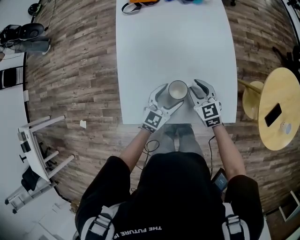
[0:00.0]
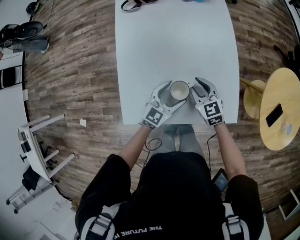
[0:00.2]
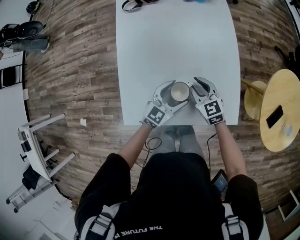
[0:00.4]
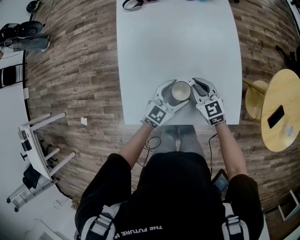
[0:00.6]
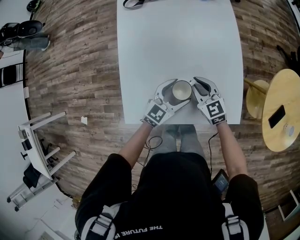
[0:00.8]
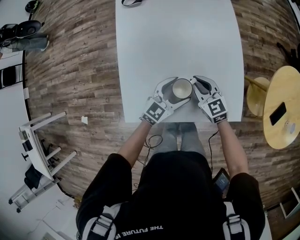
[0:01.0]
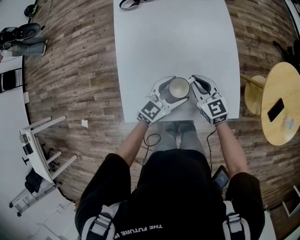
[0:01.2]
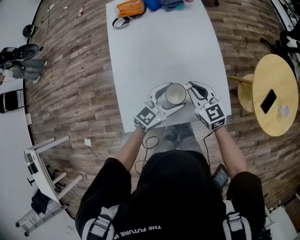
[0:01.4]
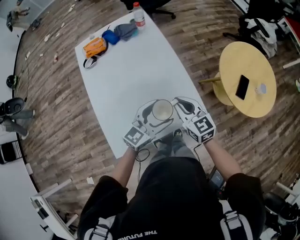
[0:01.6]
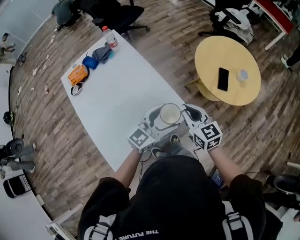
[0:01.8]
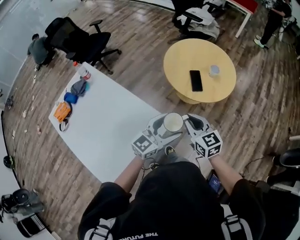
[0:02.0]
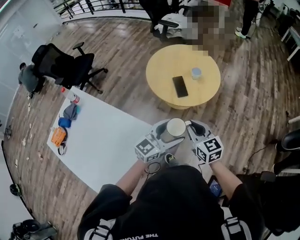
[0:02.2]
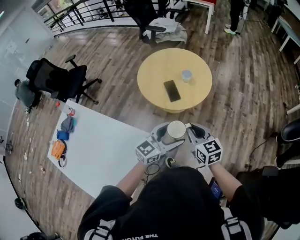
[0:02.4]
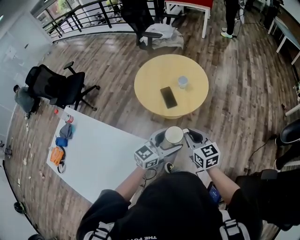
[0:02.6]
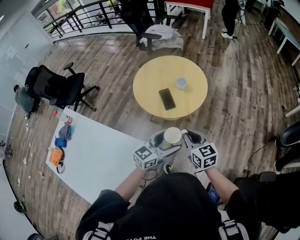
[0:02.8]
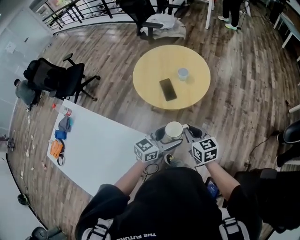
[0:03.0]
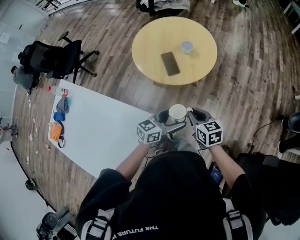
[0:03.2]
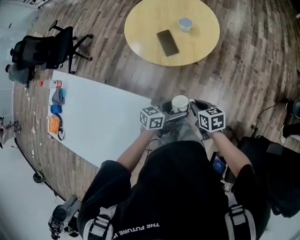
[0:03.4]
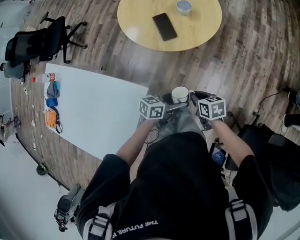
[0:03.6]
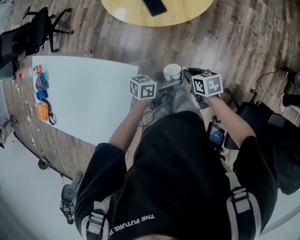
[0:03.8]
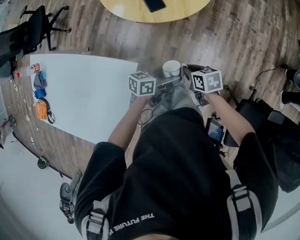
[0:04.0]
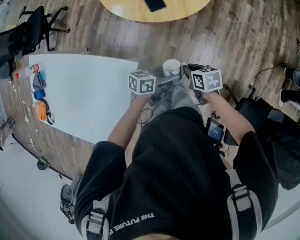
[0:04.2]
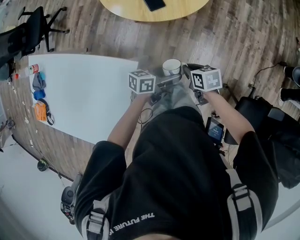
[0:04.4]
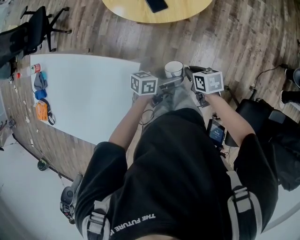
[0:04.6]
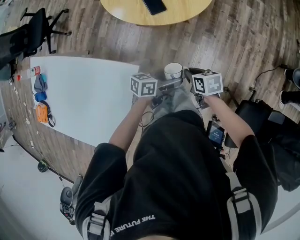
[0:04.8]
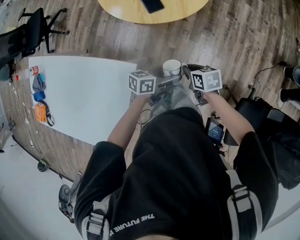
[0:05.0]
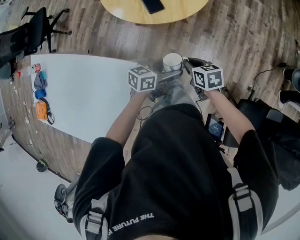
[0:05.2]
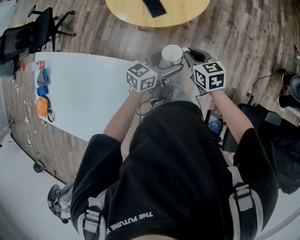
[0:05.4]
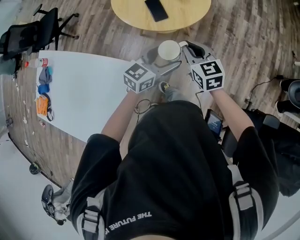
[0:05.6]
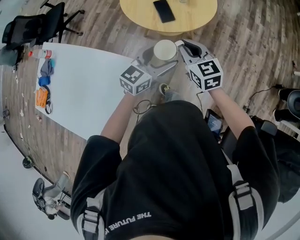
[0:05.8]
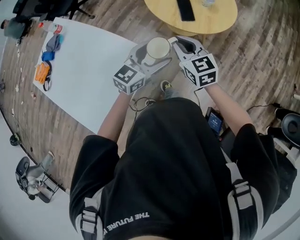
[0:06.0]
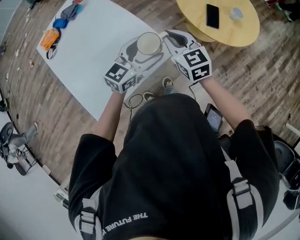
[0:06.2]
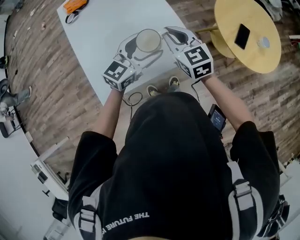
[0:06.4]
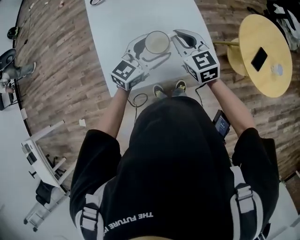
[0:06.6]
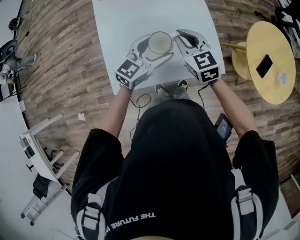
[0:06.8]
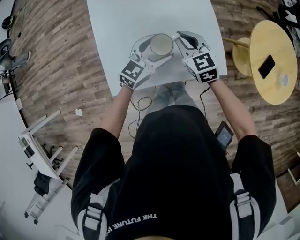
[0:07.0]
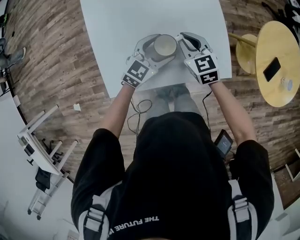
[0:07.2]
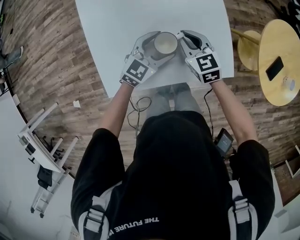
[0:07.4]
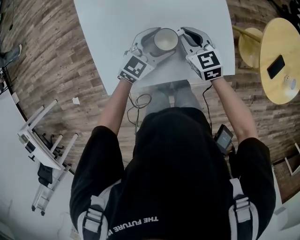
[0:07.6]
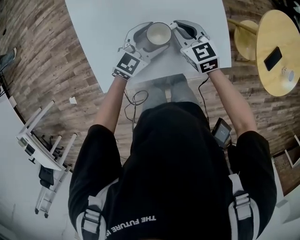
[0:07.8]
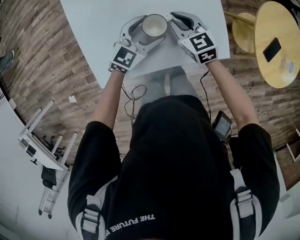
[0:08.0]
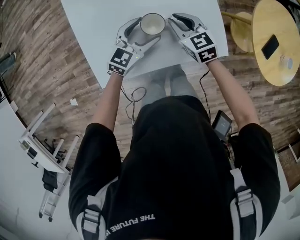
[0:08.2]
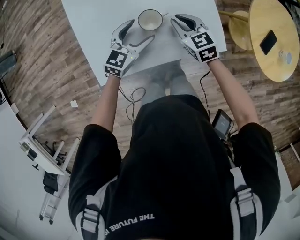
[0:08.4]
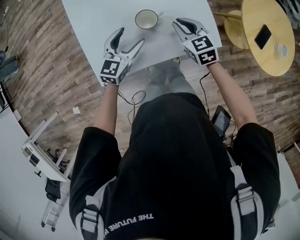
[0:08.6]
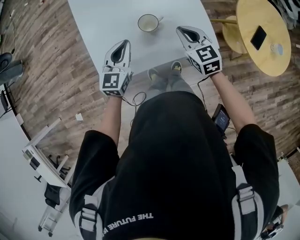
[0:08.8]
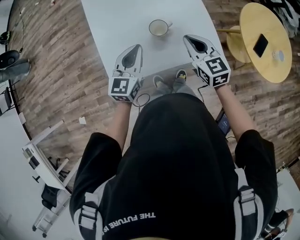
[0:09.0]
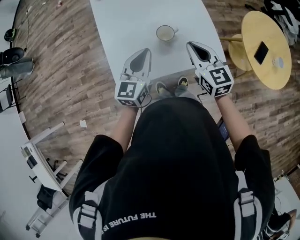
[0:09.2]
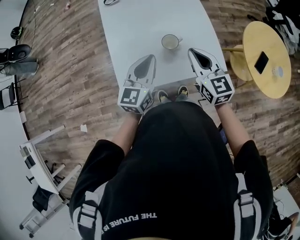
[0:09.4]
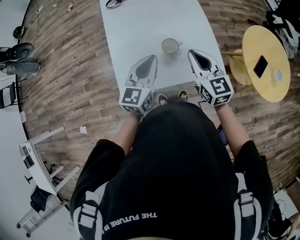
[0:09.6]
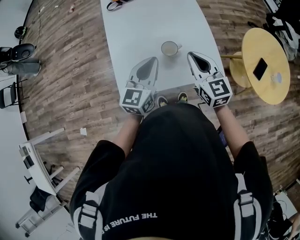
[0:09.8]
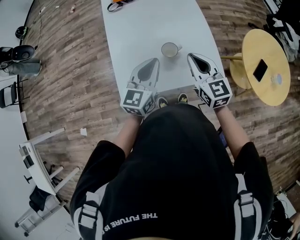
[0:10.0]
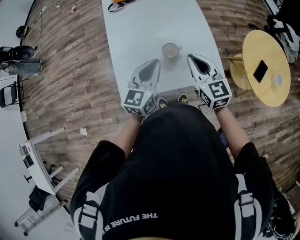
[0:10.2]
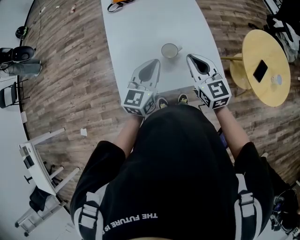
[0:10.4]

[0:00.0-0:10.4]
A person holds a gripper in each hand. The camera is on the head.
0:00.0 to 0:01.4: Both grippers move upward, about 10 cm. The right gripper closes up. The left gripper rotates some 20 degrees.
0:01.4 to 0:03.0: The two grippers travel together, approximately 50 cm. The left gripper rotates approximately 60 degrees, while the right gripper rotates roughly 70 degrees.
0:03.0 to 0:04.4: Both grippers travel together downward, approximately 20 cm. The left gripper rotates around the line of its fingers by some 40 degrees, counterclockwise from behind. Meanwhile the right gripper swivels some 40 degrees.
0:04.4 to 0:06.0: Both grippers travel together upward, approximately 20 cm. The left gripper changes its angle by approximately 60 degrees, while the right gripper rotates around the line of its fingers by roughly 40 degrees, counterclockwise from behind.
0:06.0 to 0:07.4: The right gripper ends up some 35 cm from where it was, and rotates approximately 50 degrees, while the left gripper moves roughly 35 cm, and swivels approximately 40 degrees.
0:07.4 to 0:09.0: The right gripper shifts some 15 cm backward and upward. The left gripper shifts some 20 cm to the left, upward and backward, turns by roughly 30 degrees, and closes.
0:09.0 to 0:10.4: The two grippers go about 5 cm upward.

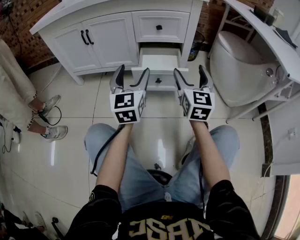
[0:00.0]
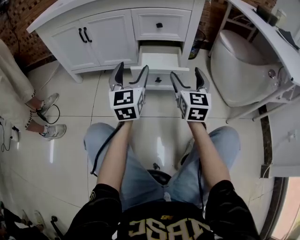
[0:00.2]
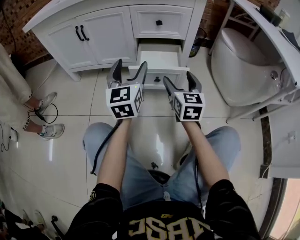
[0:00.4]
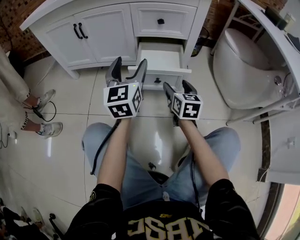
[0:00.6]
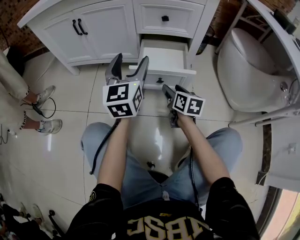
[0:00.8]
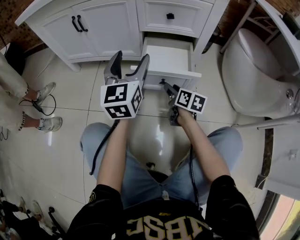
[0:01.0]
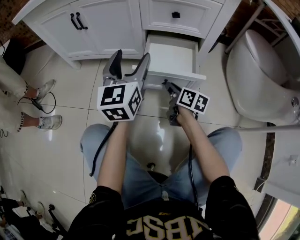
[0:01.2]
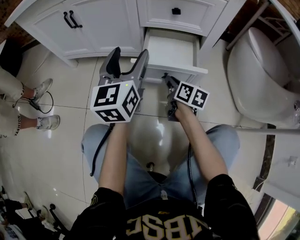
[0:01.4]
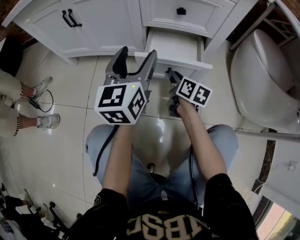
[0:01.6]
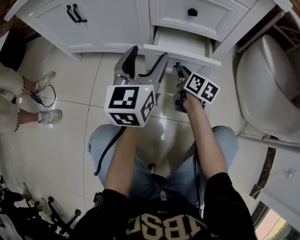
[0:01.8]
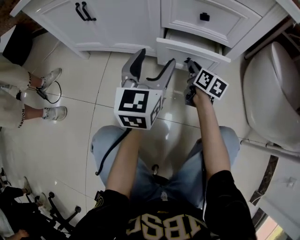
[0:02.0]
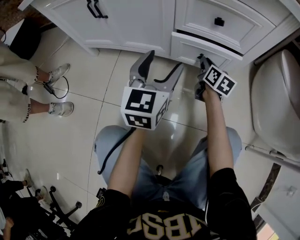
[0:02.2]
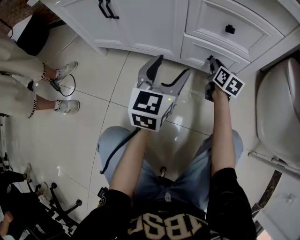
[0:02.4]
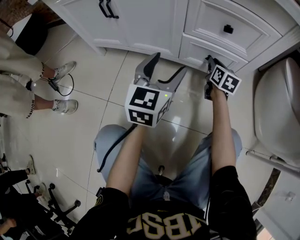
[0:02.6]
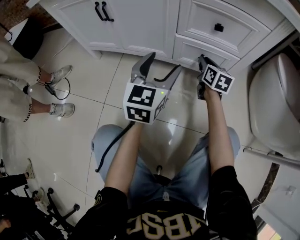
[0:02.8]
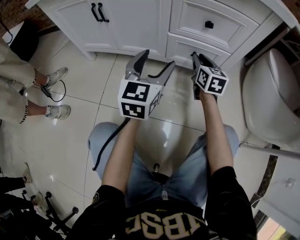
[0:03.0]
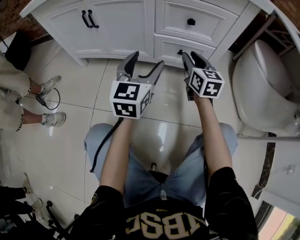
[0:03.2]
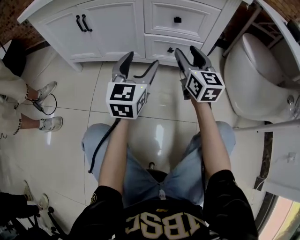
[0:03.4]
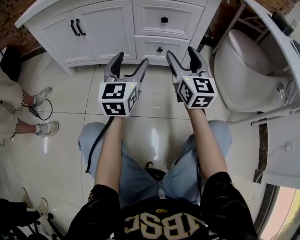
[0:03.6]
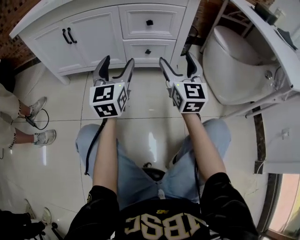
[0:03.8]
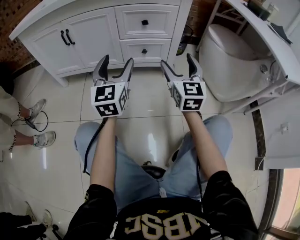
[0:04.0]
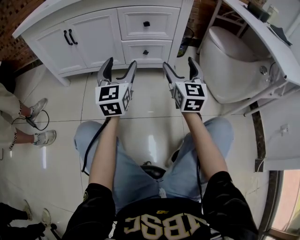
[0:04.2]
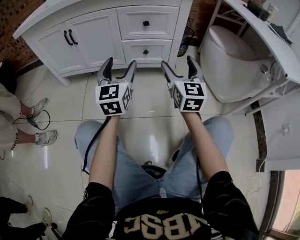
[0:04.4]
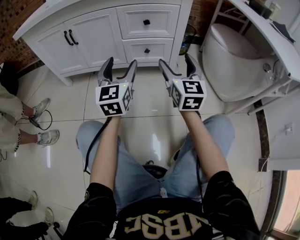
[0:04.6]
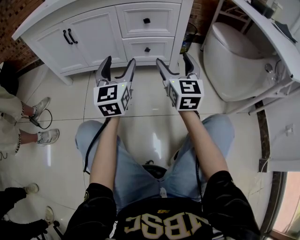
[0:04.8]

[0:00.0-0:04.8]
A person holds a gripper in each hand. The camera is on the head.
0:00.0 to 0:01.6: The right gripper moves downward and forward, about 30 cm, rotates approximately 50 degrees, and closes up. Meanwhile the left gripper shifts roughly 15 cm forward.
0:01.6 to 0:03.2: The right gripper is displaced upward by about 15 cm, goes forward and returns, roughly 15 cm each way, and swivels approximately 40 degrees.
0:03.2 to 0:04.8: The left gripper heads backward, covering approximately 10 cm; the right gripper moves backward and upward, some 20 cm, turns by roughly 20 degrees, and opens.

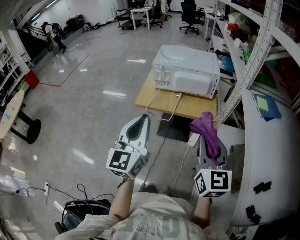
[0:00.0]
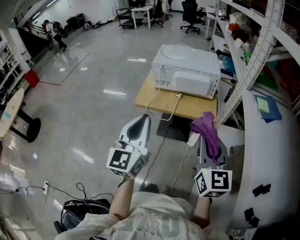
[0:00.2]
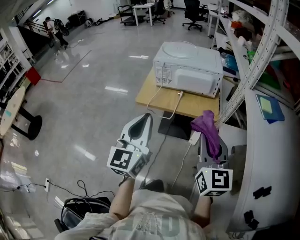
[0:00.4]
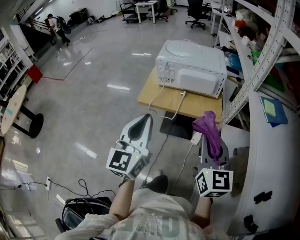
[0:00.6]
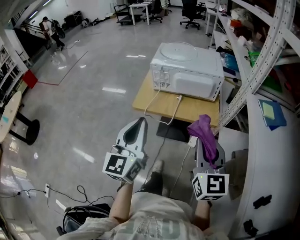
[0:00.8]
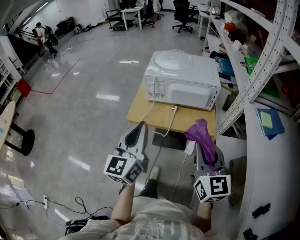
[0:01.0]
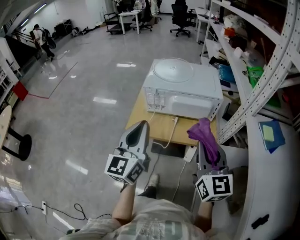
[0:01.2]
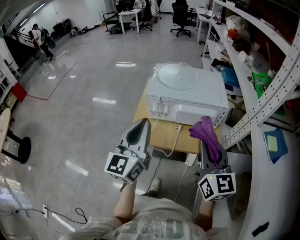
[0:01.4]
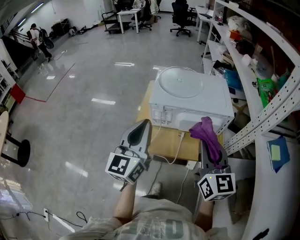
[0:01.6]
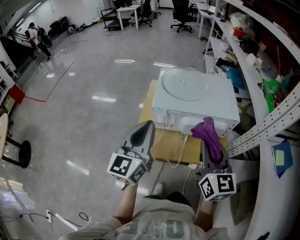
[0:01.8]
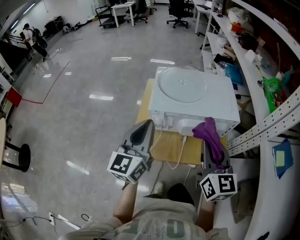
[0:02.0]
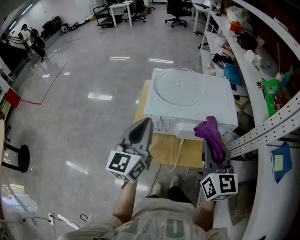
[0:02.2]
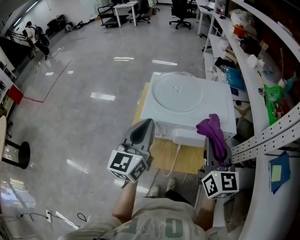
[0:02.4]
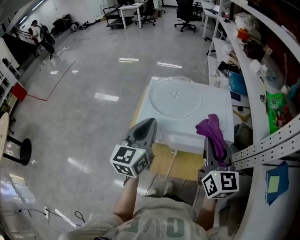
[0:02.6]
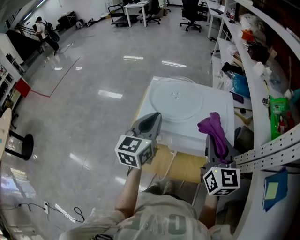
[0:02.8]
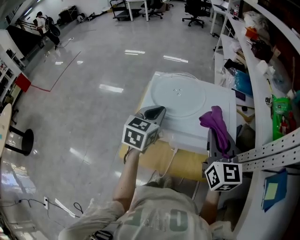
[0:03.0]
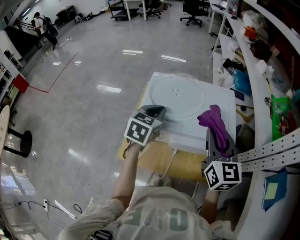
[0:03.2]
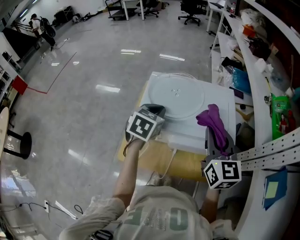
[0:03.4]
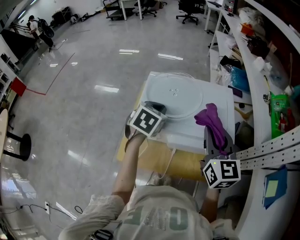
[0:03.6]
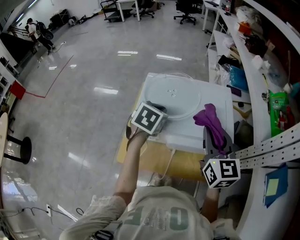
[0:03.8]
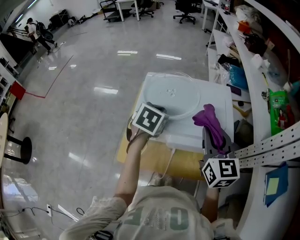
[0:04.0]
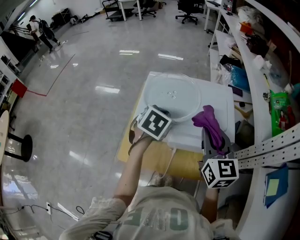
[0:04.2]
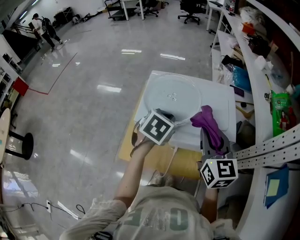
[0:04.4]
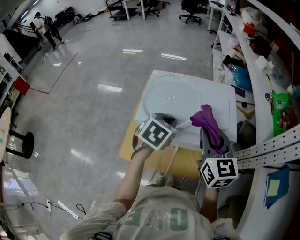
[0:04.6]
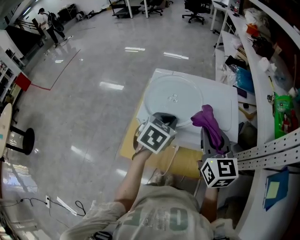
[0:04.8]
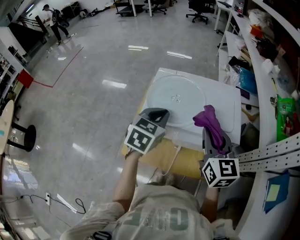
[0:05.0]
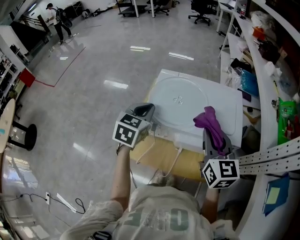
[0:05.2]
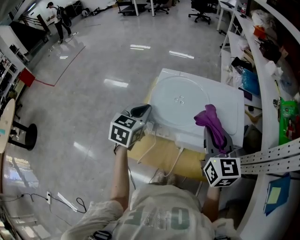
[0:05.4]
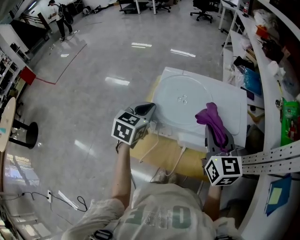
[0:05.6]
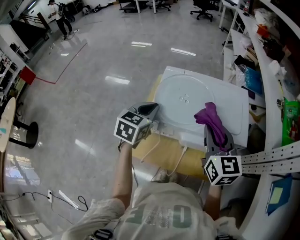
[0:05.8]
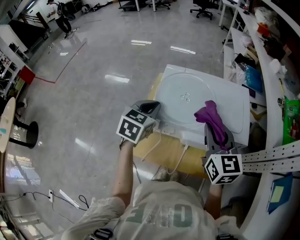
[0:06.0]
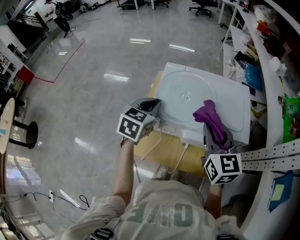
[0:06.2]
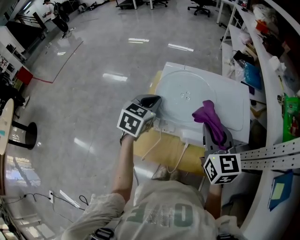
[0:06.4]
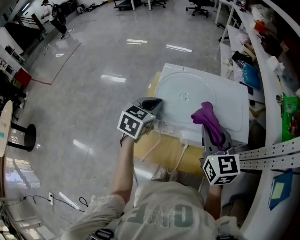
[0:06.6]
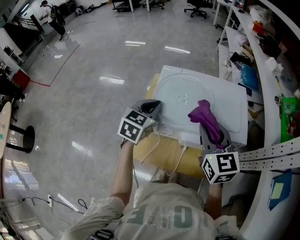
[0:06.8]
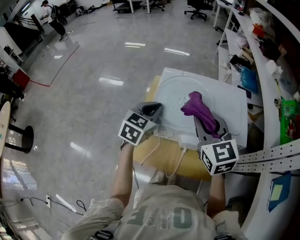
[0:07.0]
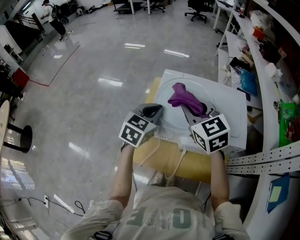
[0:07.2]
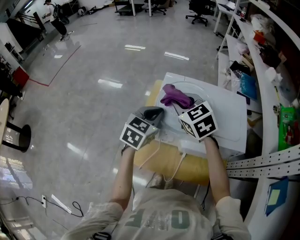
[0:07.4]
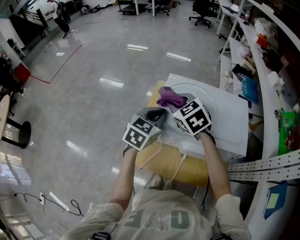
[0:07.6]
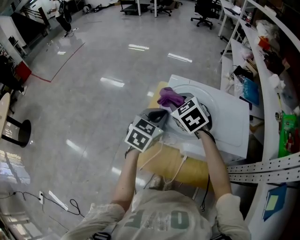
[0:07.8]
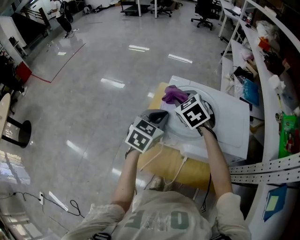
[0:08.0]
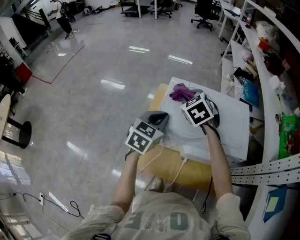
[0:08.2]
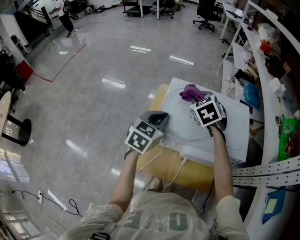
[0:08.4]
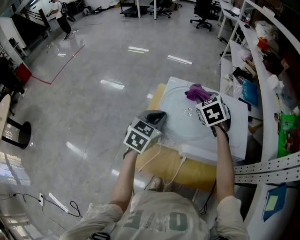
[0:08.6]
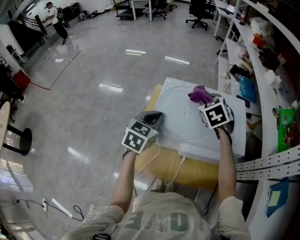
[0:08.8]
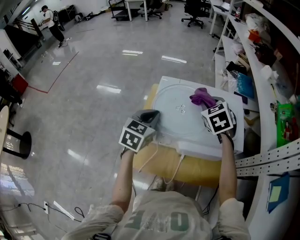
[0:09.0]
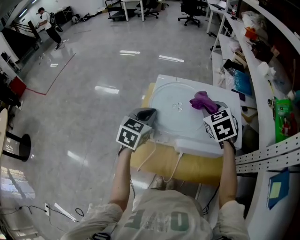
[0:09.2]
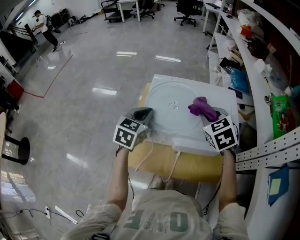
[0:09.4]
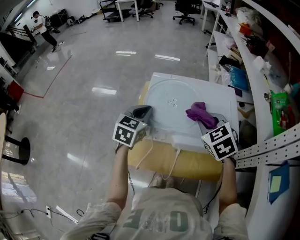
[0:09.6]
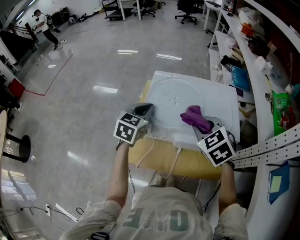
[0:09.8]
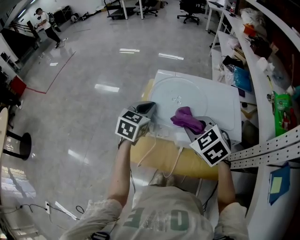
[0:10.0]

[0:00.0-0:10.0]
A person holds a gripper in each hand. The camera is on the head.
0:00.0 to 0:01.4: The grippers both shift forward by roughly 25 cm.
0:01.4 to 0:02.8: Both grippers move forward, approximately 25 cm.
0:02.8 to 0:04.2: The left gripper moves downward, roughly 10 cm, and angles its fingers downward, by some 40 degrees.
0:04.2 to 0:05.8: The right gripper goes about 5 cm to the left. Meanwhile the left gripper moves to the left, some 10 cm, and swivels approximately 20 degrees.
0:05.8 to 0:07.2: The right gripper is displaced to the left and forward by roughly 15 cm, and turns by about 30 degrees.
0:07.2 to 0:08.6: The right gripper shifts roughly 10 cm forward and downward, and changes its angle by some 30 degrees.
0:08.6 to 0:10.0: The right gripper heads backward, covering about 20 cm.
